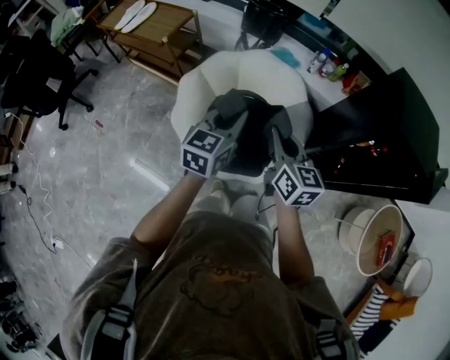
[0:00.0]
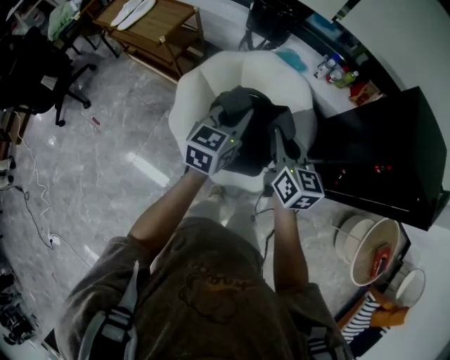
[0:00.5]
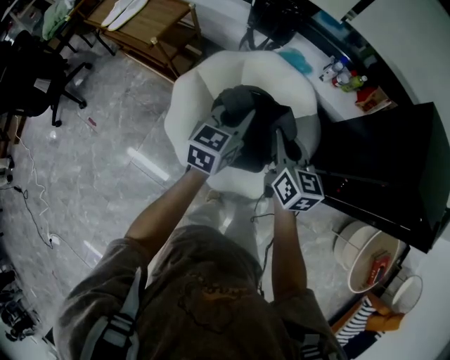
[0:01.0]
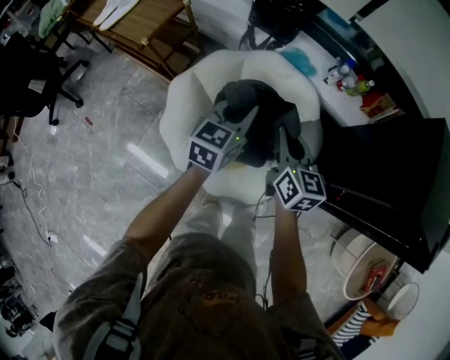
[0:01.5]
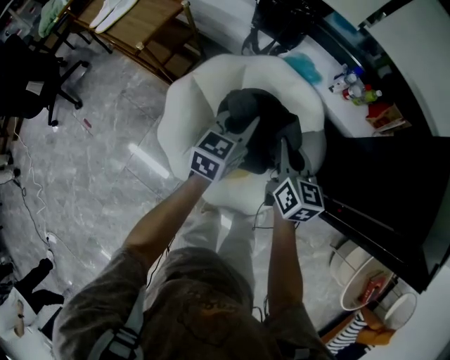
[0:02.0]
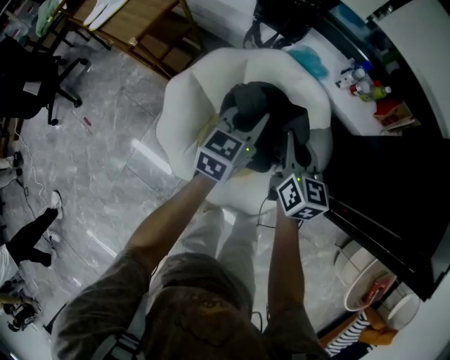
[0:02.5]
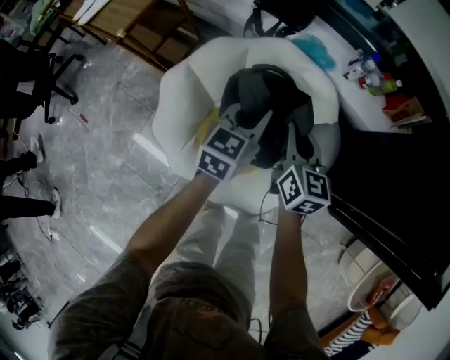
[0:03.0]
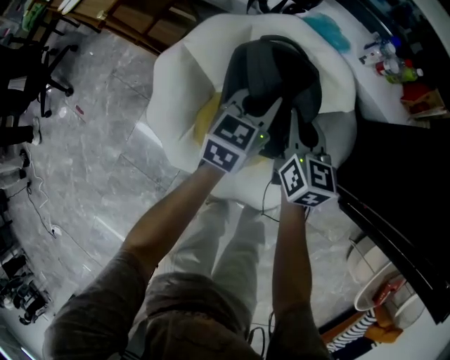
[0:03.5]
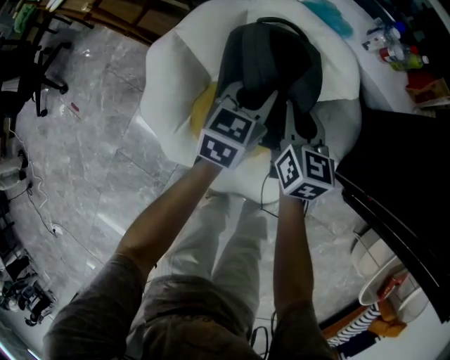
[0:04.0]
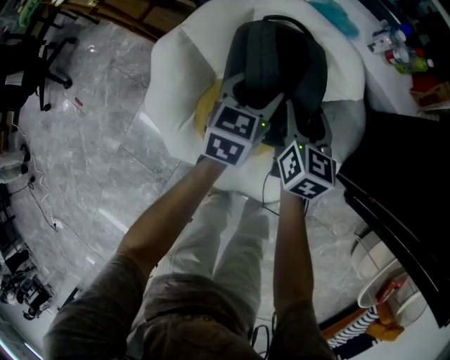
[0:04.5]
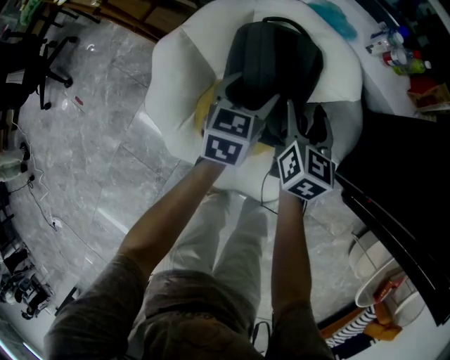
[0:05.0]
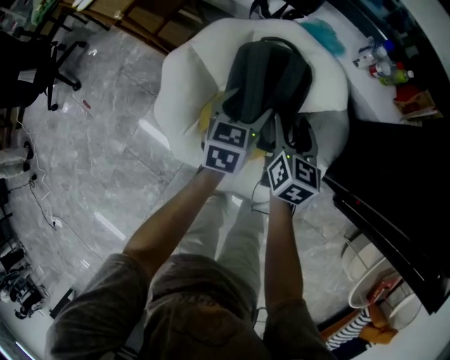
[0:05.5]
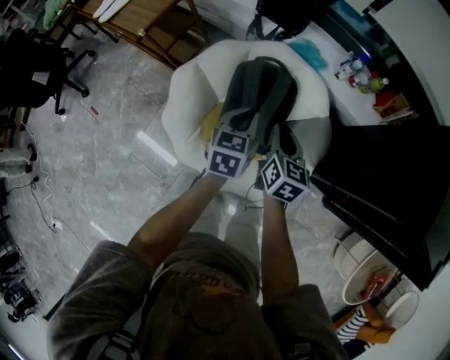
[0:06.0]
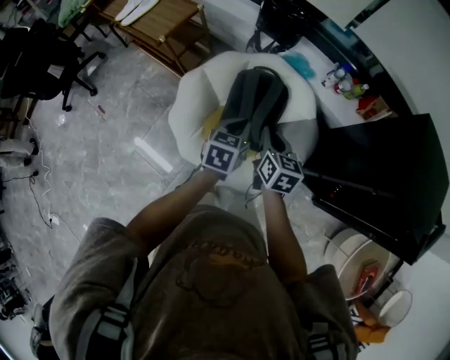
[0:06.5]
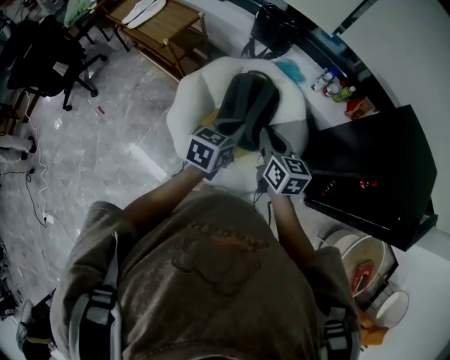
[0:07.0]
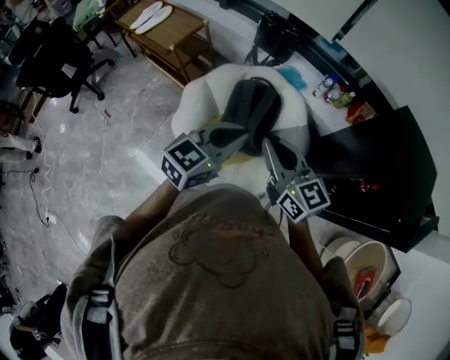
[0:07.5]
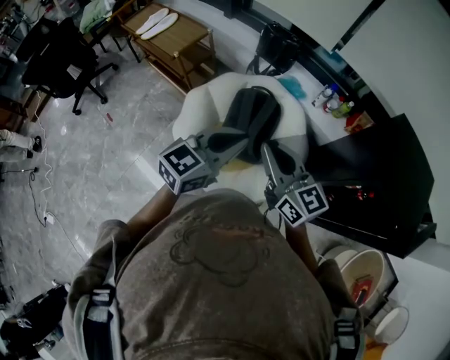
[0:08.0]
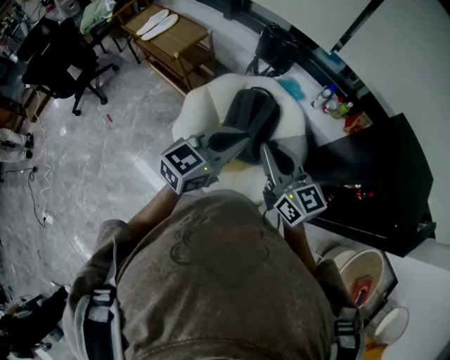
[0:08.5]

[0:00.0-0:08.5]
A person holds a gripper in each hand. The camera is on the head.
0:00.0 to 0:02.0: Both grippers travel together forward and downward, about 30 cm.
0:02.0 to 0:04.0: Both grippers move downward, about 20 cm.
0:04.0 to 0:06.5: The two grippers go roughly 25 cm upward and backward. The right gripper opens, then closes again. The left gripper opens, then closes again.
0:06.5 to 0:08.5: Both grippers travel together upward and backward, some 25 cm. The right gripper turns by about 40 degrees; the left gripper turns by some 40 degrees.

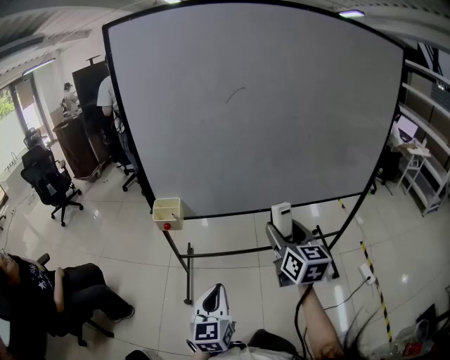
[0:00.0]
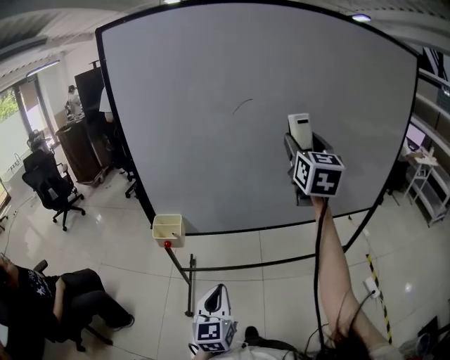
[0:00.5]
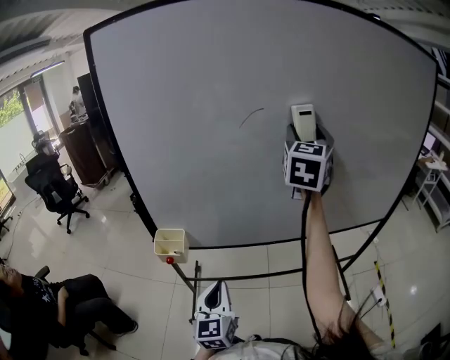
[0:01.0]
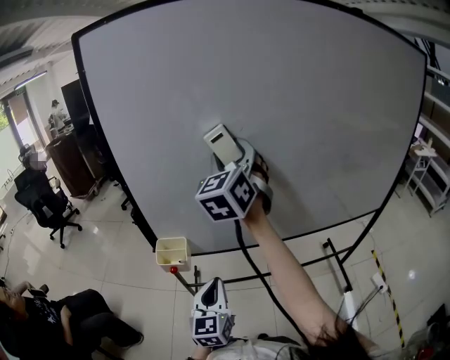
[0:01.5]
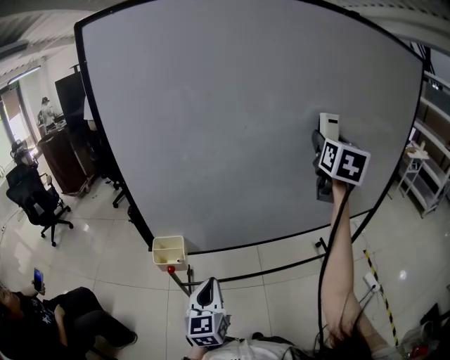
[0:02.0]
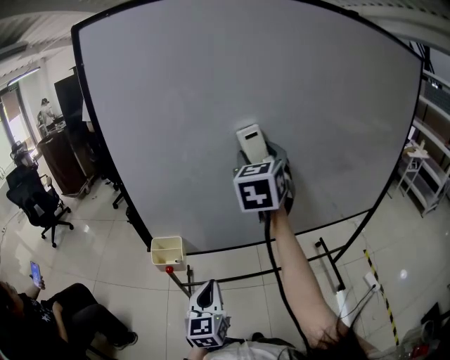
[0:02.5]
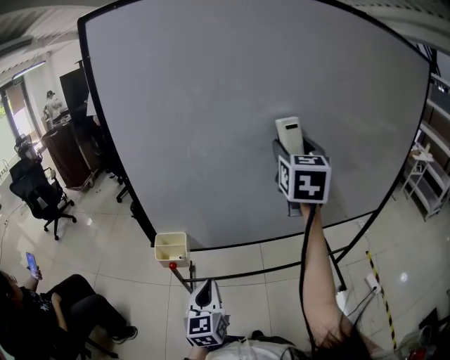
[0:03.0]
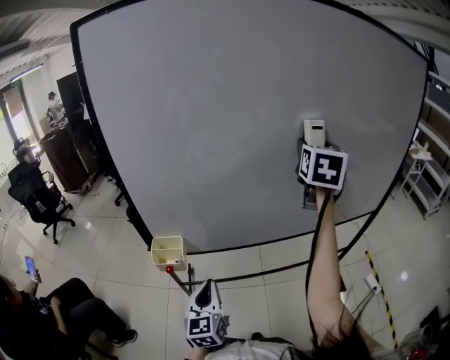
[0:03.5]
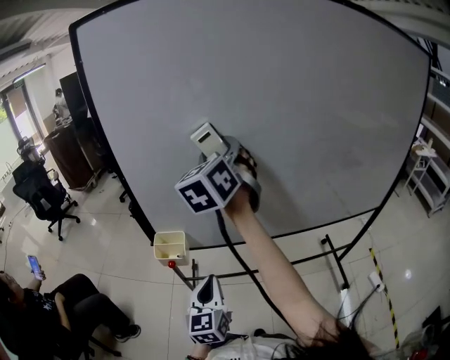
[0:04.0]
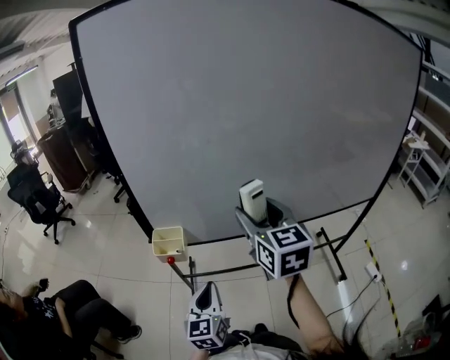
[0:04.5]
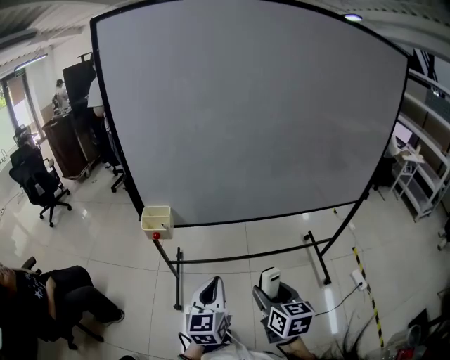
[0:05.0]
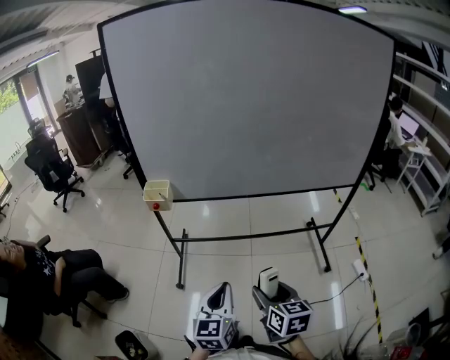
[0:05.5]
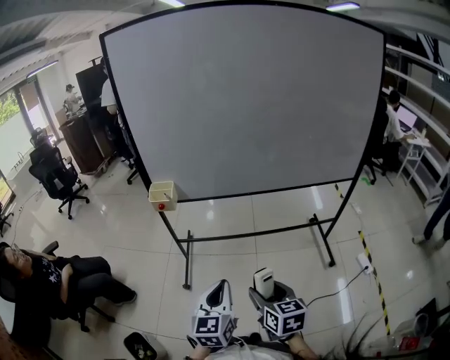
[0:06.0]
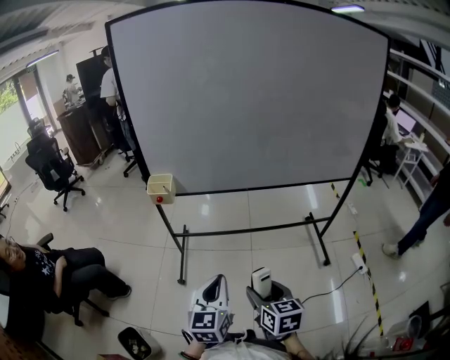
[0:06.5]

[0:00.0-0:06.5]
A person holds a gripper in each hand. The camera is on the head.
0:00.0 to 0:02.0: The right gripper goes about 35 cm forward and upward, goes to the left and returns, approximately 20 cm each way, and changes its angle by approximately 30 degrees, while the left gripper travels forward and to the left by roughly 20 cm.
0:02.0 to 0:04.5: The right gripper swings left and right, approximately 30 cm each way, with 3 reversals, and turns by about 30 degrees.
0:04.5 to 0:06.5: The right gripper shifts roughly 40 cm backward and downward, and rotates some 30 degrees. Meanwhile the left gripper is displaced backward and to the right by approximately 25 cm.

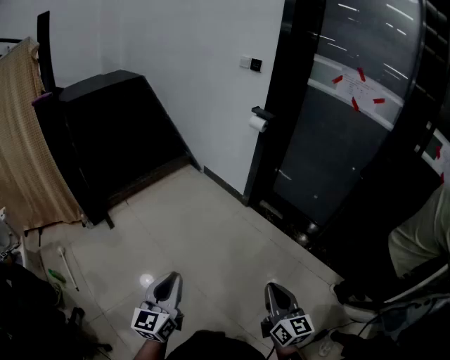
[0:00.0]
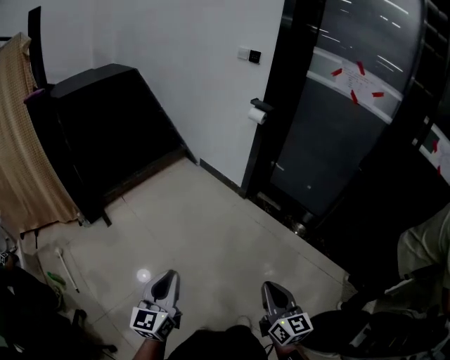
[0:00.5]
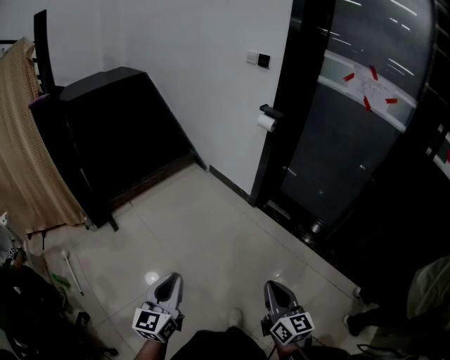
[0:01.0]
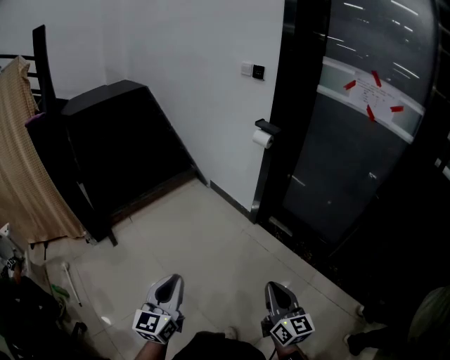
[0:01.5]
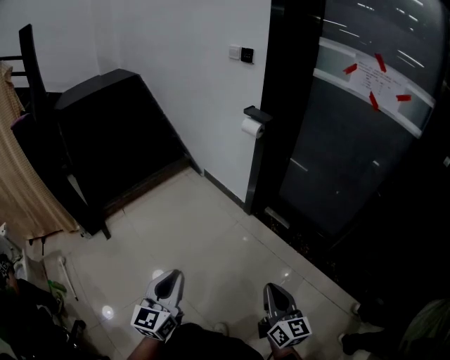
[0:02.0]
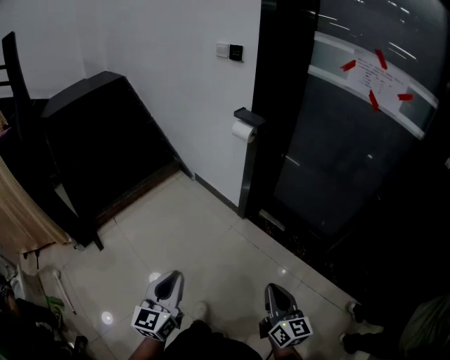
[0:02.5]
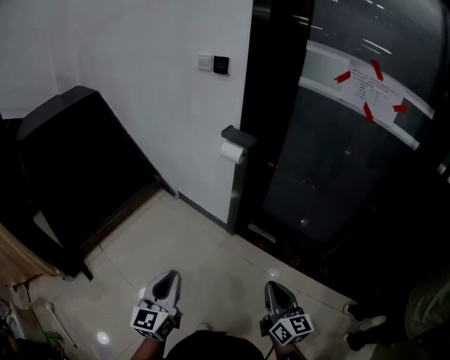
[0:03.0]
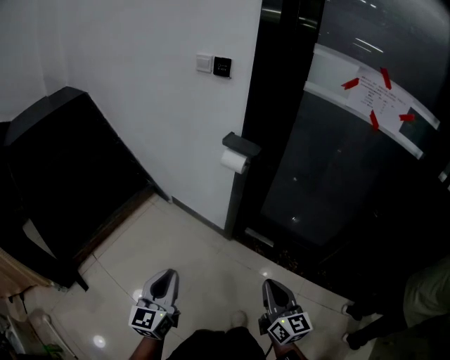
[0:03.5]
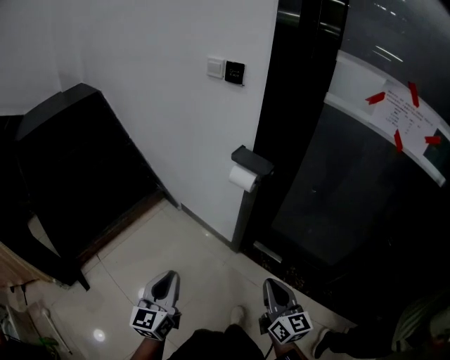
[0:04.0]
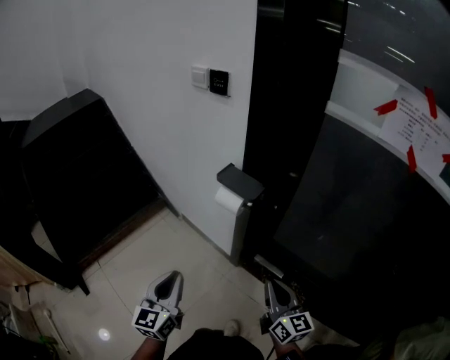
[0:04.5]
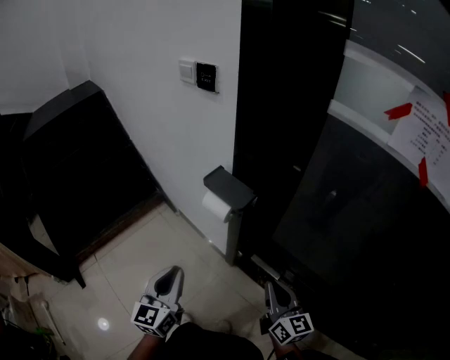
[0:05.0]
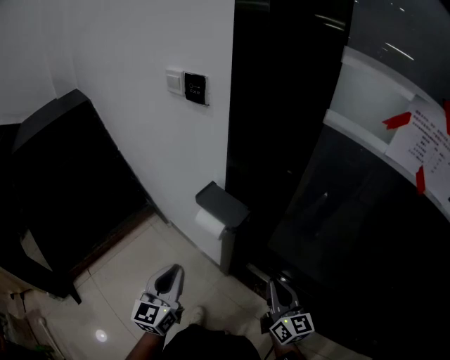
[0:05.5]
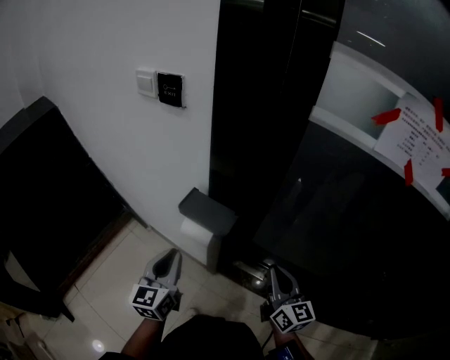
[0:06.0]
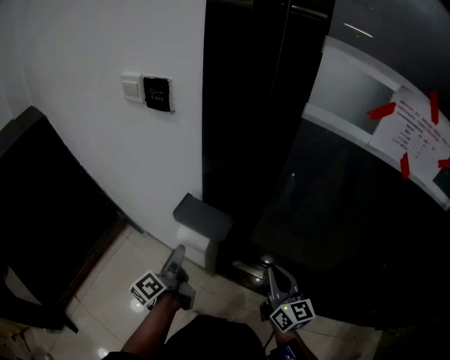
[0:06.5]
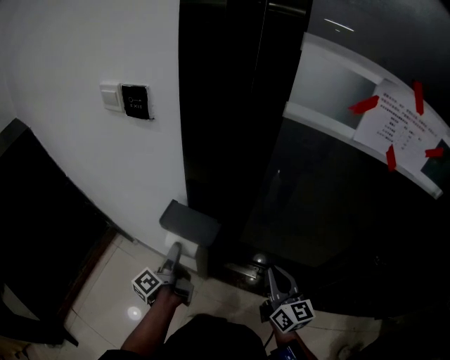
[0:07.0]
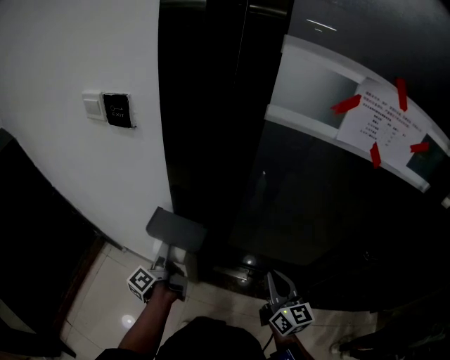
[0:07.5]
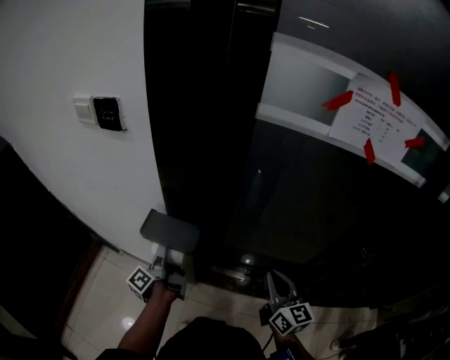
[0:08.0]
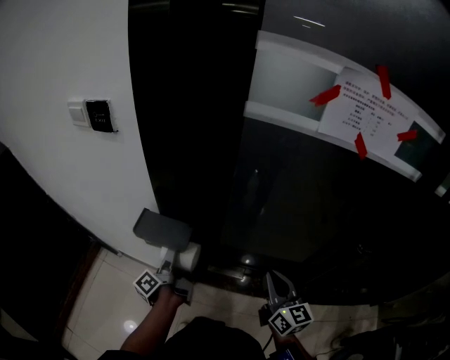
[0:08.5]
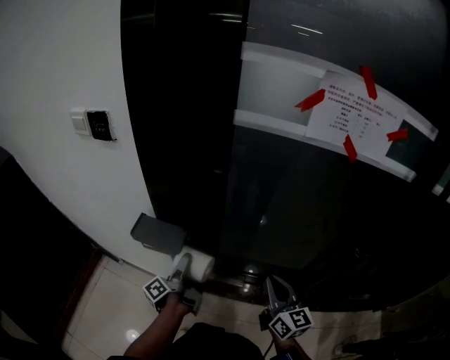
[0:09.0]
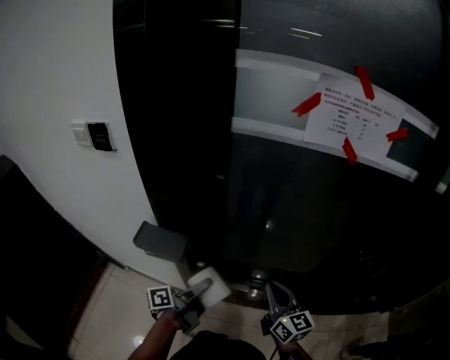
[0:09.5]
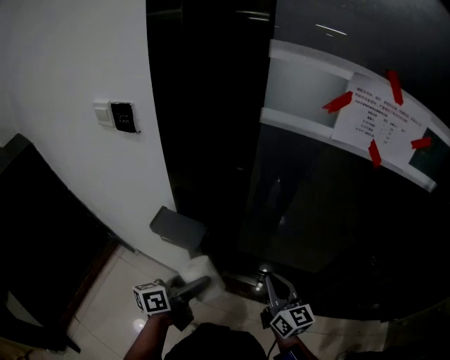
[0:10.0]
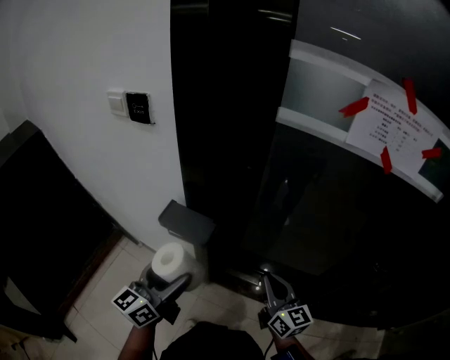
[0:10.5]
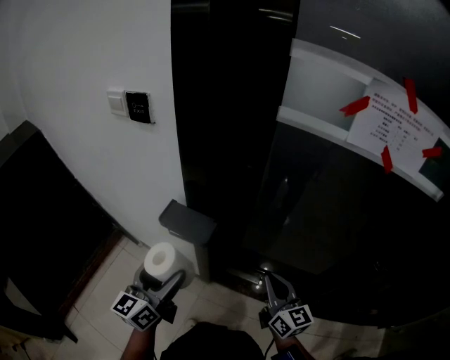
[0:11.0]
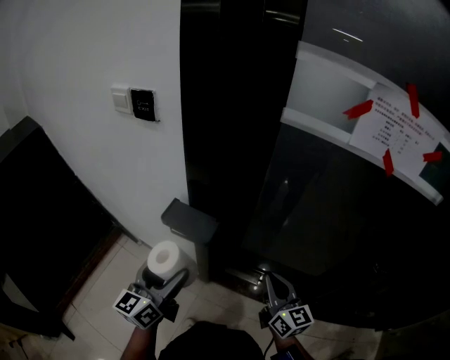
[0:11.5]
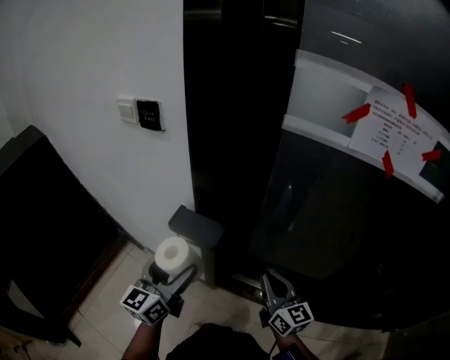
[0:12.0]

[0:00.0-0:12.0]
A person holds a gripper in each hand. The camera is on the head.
0:00.0 to 0:02.0: Both grippers move forward and to the right, approximately 25 cm.
0:02.0 to 0:04.0: Both grippers travel together forward, about 40 cm.
0:04.0 to 0:06.0: Both grippers move forward and to the right, approximately 35 cm.
0:06.0 to 0:08.0: The right gripper heads to the right, covering approximately 5 cm, while the left gripper moves forward, downward and to the right, approximately 15 cm, rotates around the line of its fingers by approximately 80 degrees, counterclockwise from behind, and opens.
0:08.0 to 0:10.0: The left gripper travels to the right, backward and upward by some 20 cm, and swivels roughly 50 degrees.
0:10.0 to 0:12.0: The right gripper shifts roughly 5 cm to the left. The left gripper is displaced to the left and upward by roughly 15 cm, and swivels roughly 40 degrees.
